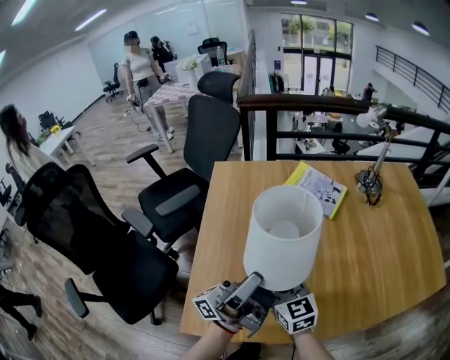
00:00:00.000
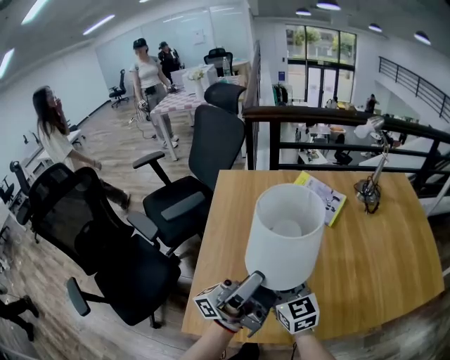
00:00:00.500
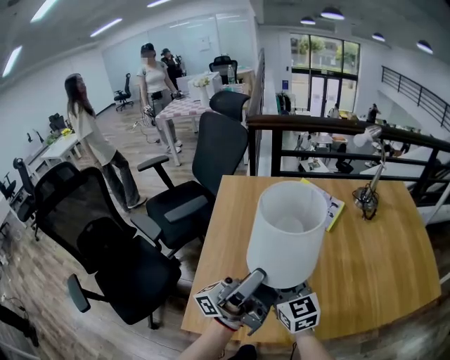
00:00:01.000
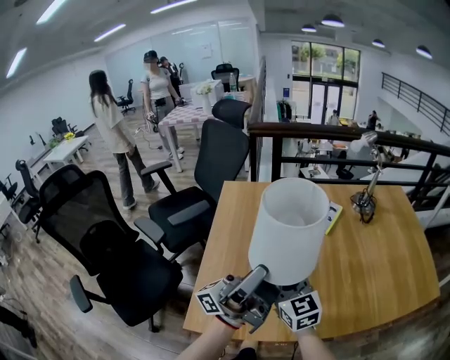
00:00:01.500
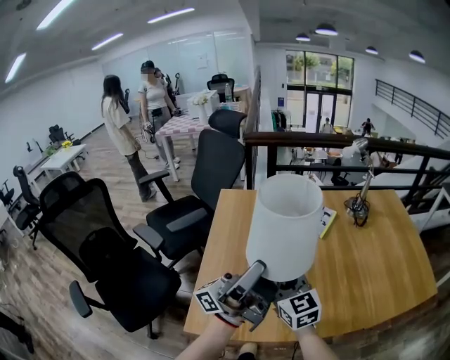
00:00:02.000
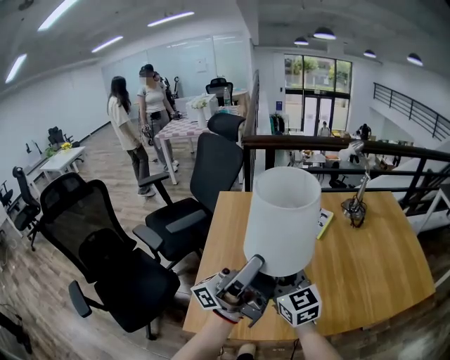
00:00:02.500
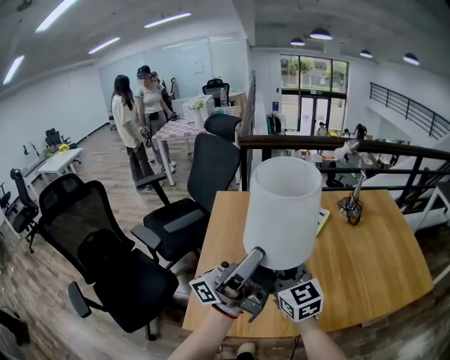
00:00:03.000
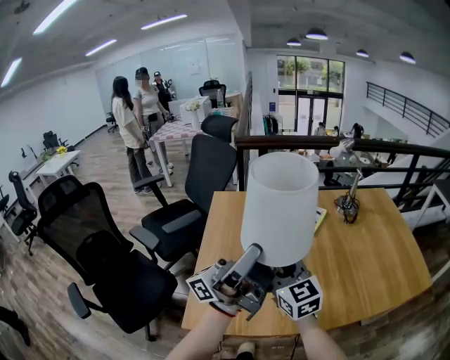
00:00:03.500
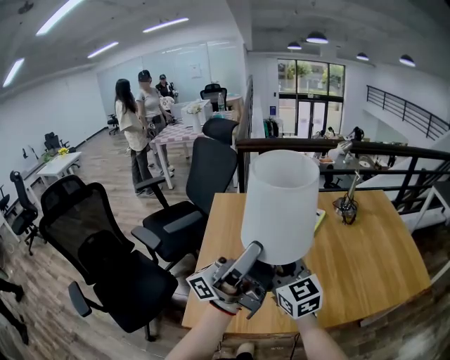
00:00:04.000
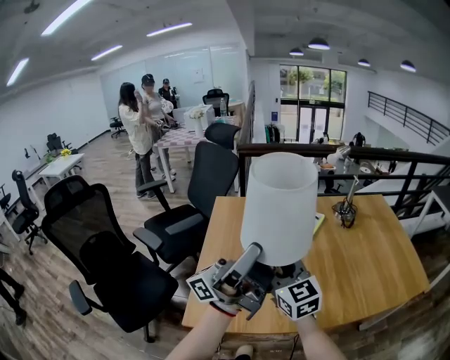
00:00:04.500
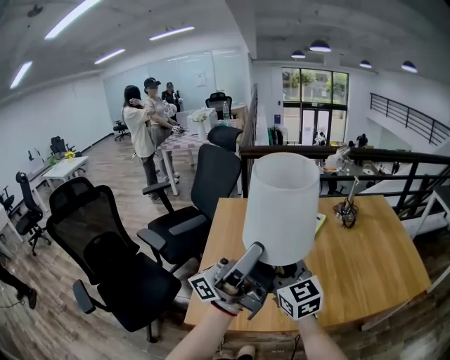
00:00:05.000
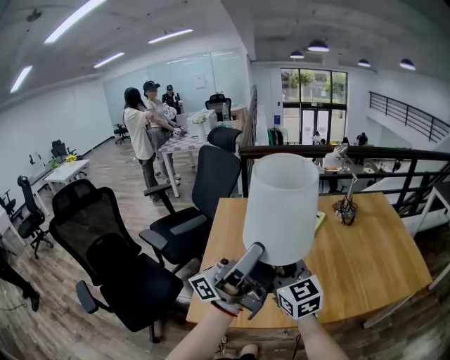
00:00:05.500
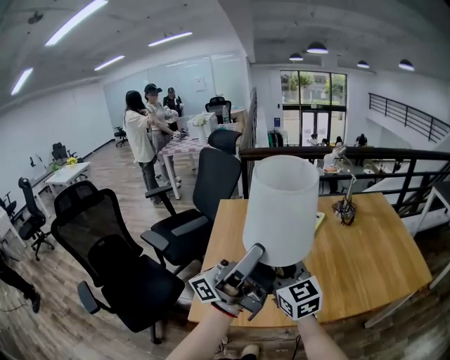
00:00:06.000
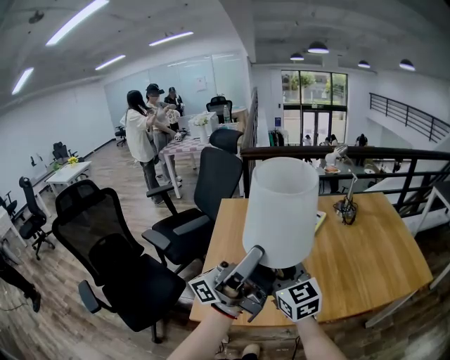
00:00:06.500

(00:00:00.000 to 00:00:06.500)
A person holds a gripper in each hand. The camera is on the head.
00:00:00.000 - 00:00:02.000: The grippers both shift upward by about 10 cm.
00:00:02.000 - 00:00:04.500: The two grippers go approximately 5 cm upward.
00:00:04.500 - 00:00:06.500: The left gripper moves about 5 cm.

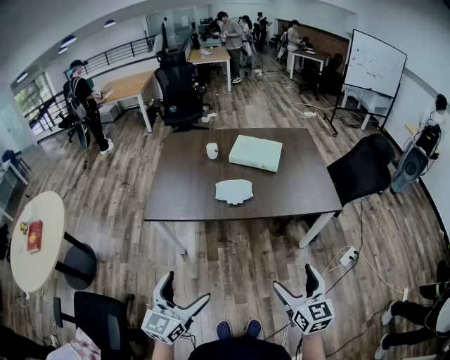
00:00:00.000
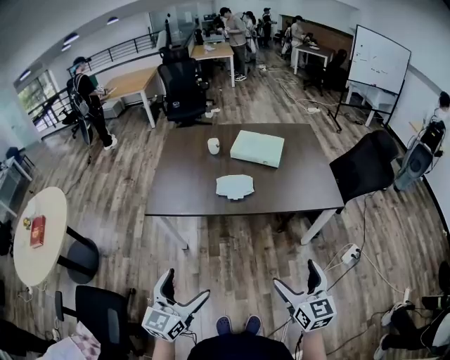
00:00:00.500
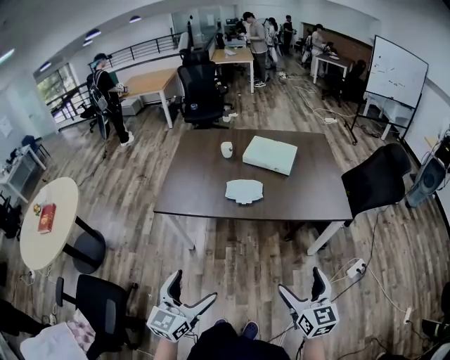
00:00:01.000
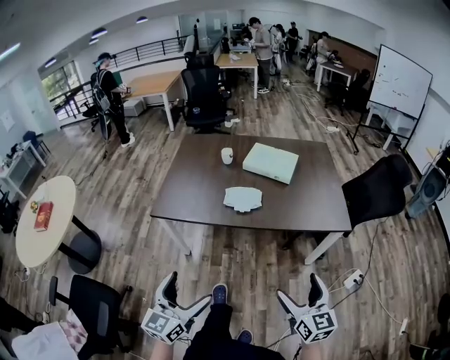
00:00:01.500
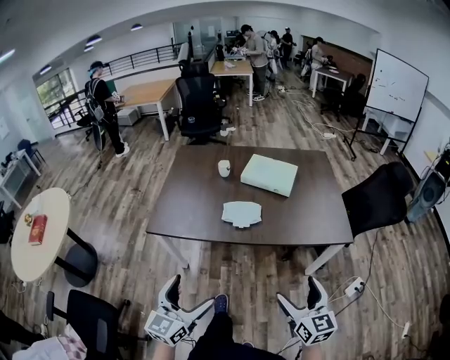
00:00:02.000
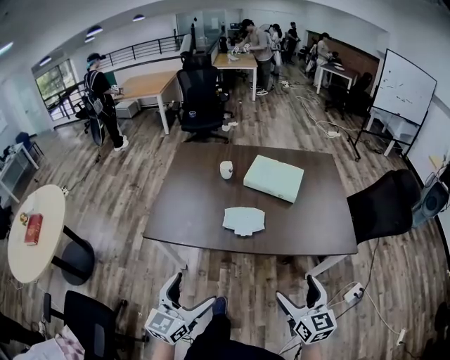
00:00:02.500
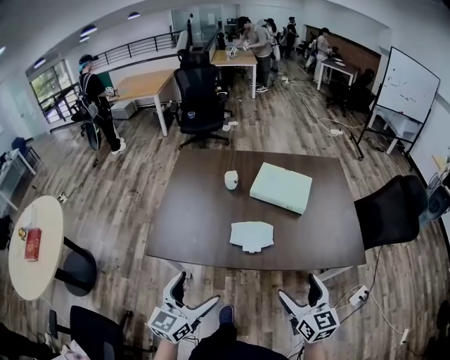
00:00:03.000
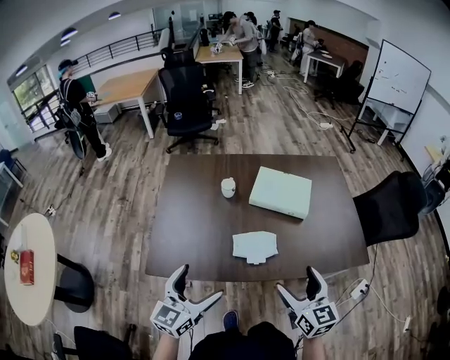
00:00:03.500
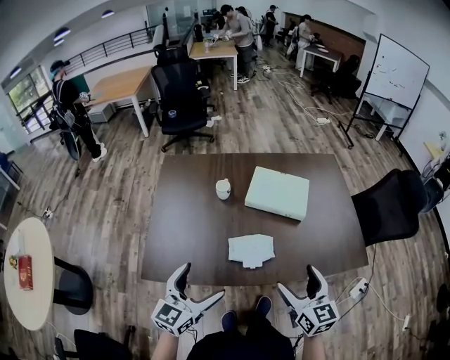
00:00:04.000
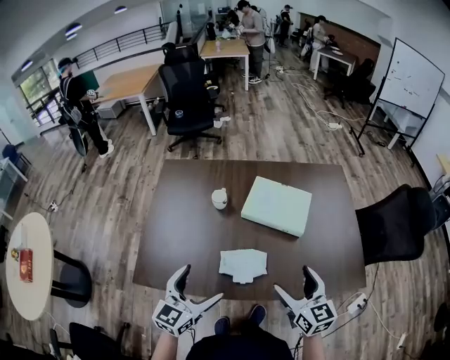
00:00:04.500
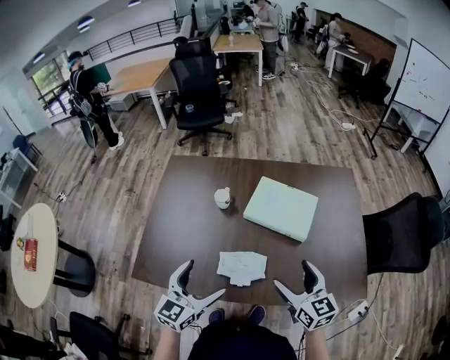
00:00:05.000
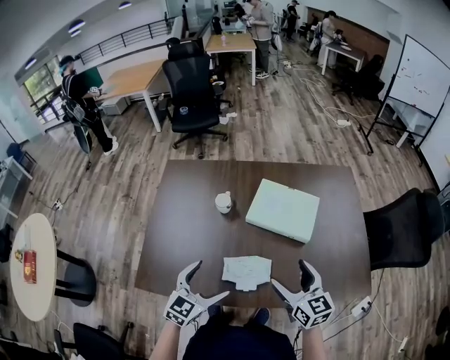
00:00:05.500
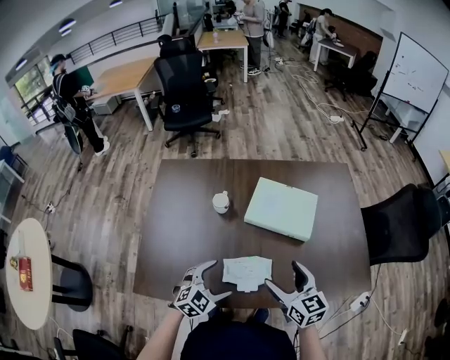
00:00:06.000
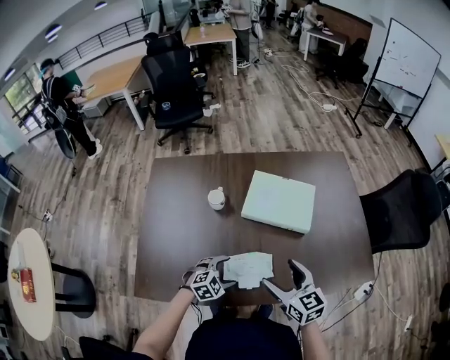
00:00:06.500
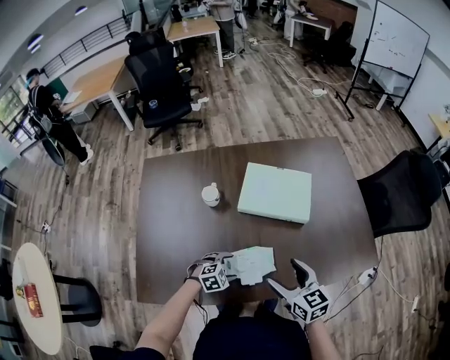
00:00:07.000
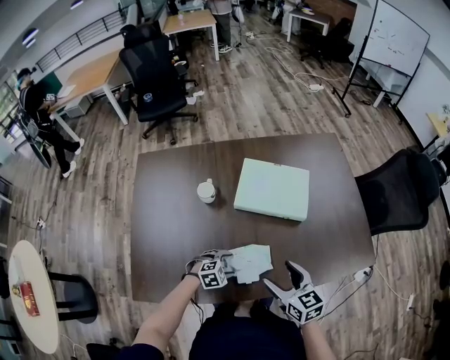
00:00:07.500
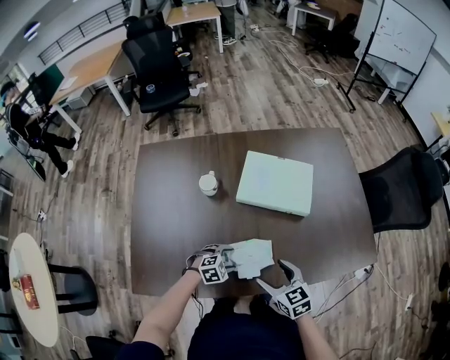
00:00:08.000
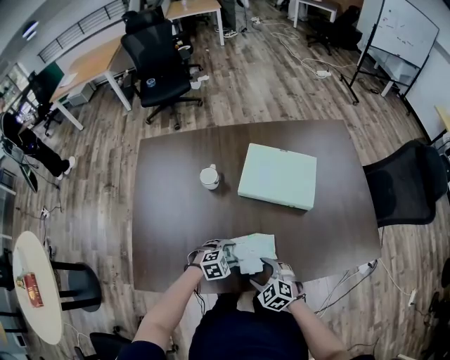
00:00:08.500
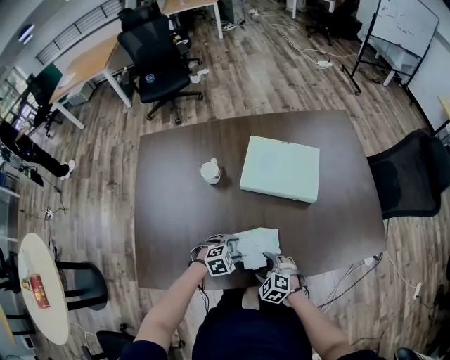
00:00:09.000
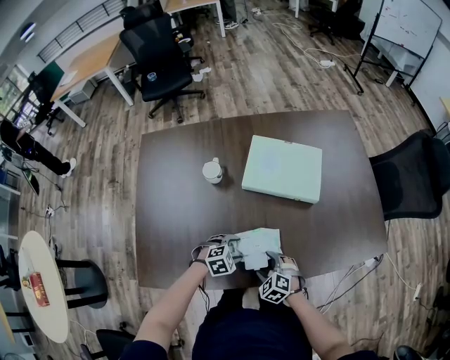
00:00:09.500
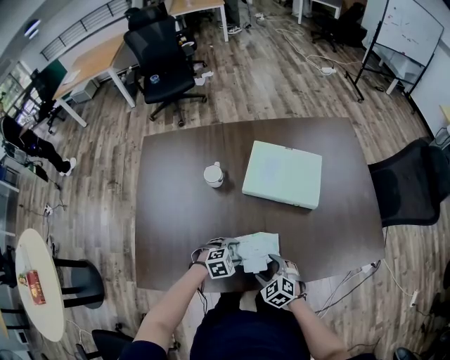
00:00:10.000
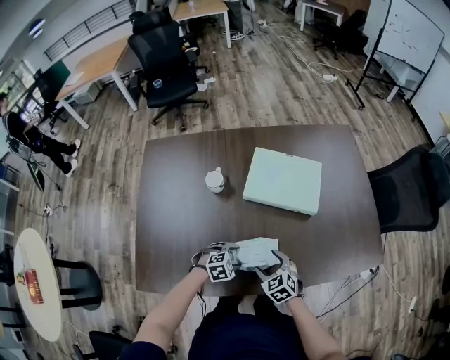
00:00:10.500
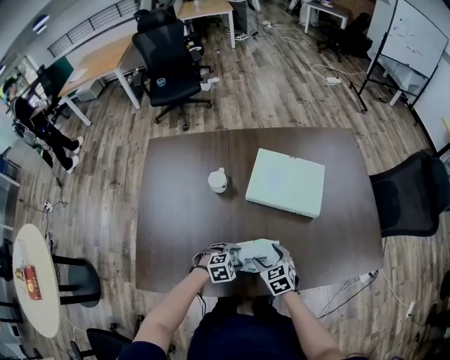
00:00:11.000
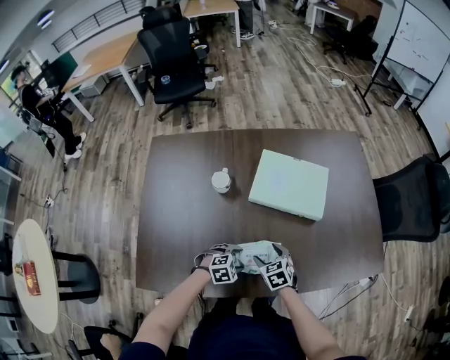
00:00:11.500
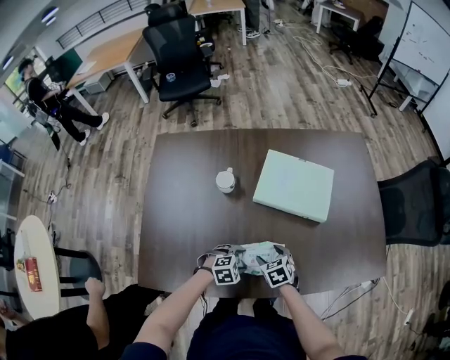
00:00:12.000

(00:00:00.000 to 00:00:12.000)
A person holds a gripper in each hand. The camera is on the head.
00:00:00.000 - 00:00:02.000: The two grippers go about 10 cm forward.
00:00:02.000 - 00:00:04.000: Both grippers travel together forward, roughly 35 cm.
00:00:04.000 - 00:00:06.000: The right gripper shifts roughly 15 cm forward, while the left gripper shifts approximately 25 cm downward, forward and to the right, and turns by about 40 degrees.
00:00:06.000 - 00:00:08.000: The left gripper moves downward, roughly 20 cm, and turns by about 30 degrees. The right gripper shifts approximately 15 cm downward.
00:00:08.000 - 00:00:10.000: The right gripper shifts some 15 cm downward, and swivels roughly 30 degrees.
00:00:10.000 - 00:00:12.000: The right gripper goes roughly 10 cm forward, and rotates about 30 degrees.

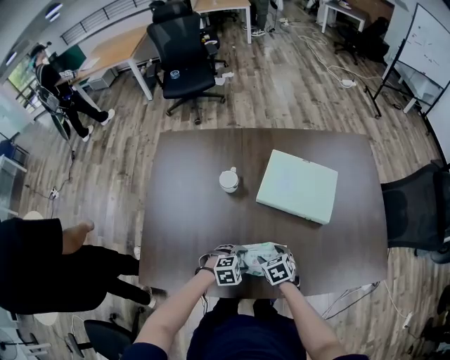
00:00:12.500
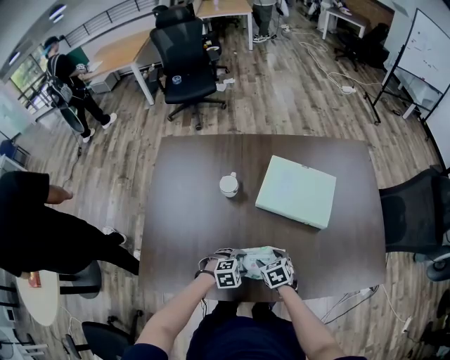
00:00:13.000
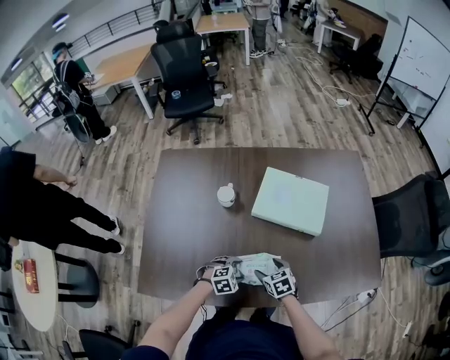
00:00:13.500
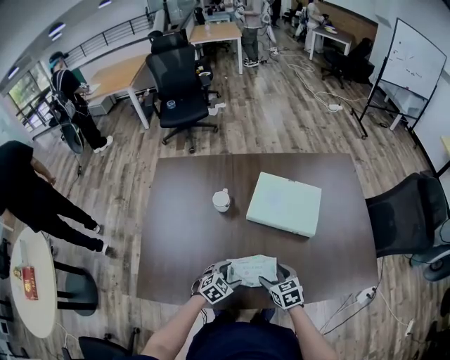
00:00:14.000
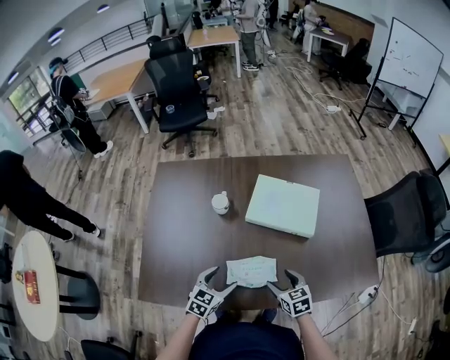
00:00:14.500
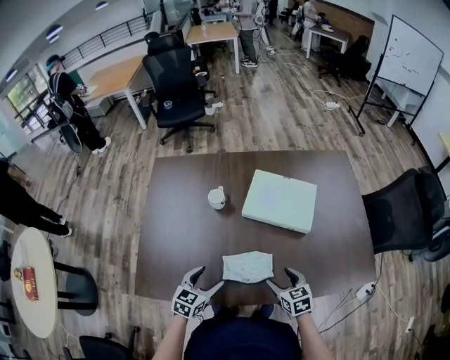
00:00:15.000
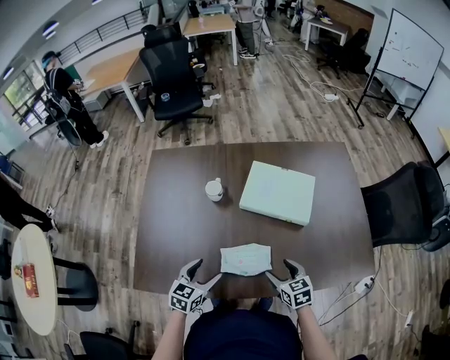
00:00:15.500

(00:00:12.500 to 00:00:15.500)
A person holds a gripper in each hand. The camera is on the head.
00:00:12.500 - 00:00:14.000: The right gripper shifts about 10 cm upward and to the right. Meanwhile the left gripper rotates roughly 30 degrees.
00:00:14.000 - 00:00:15.500: The right gripper moves to the right, about 5 cm; the left gripper heads upward and to the left, covering about 15 cm, and rotates about 30 degrees.

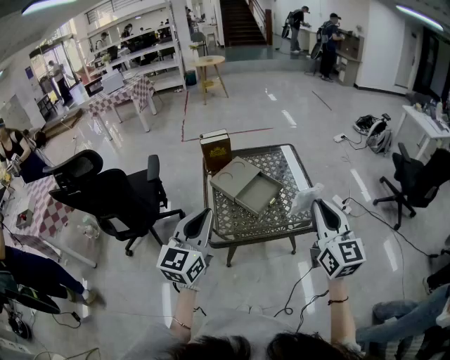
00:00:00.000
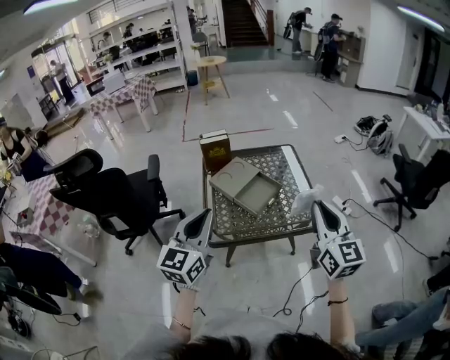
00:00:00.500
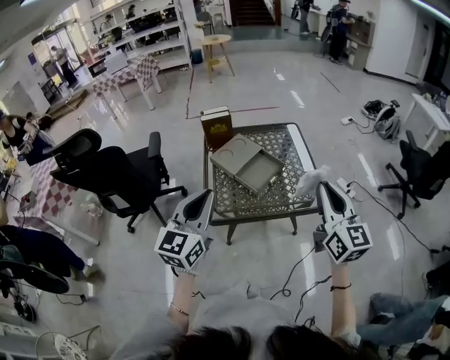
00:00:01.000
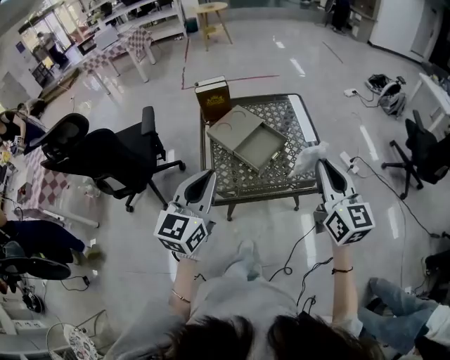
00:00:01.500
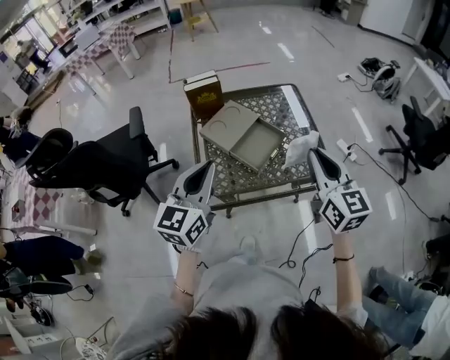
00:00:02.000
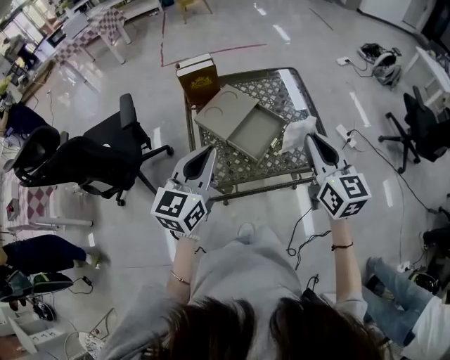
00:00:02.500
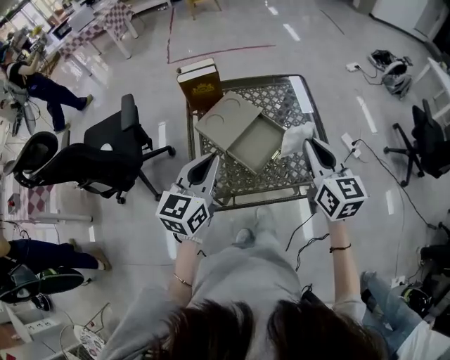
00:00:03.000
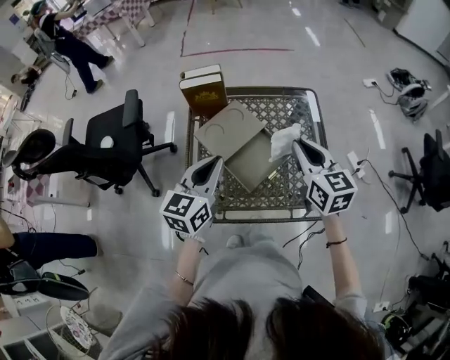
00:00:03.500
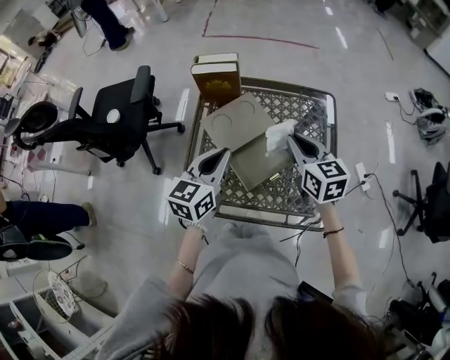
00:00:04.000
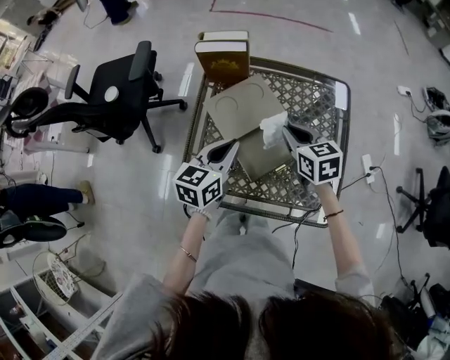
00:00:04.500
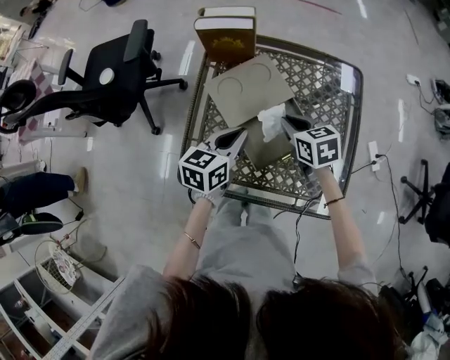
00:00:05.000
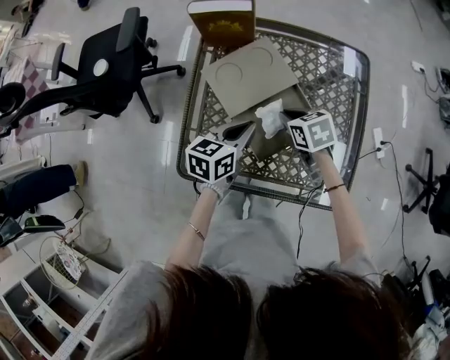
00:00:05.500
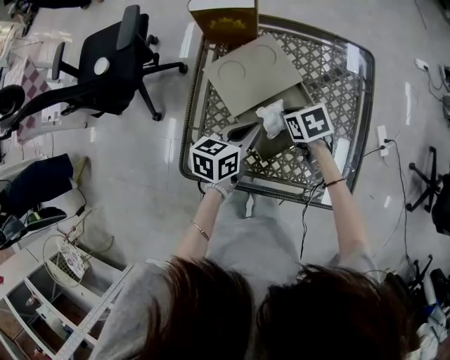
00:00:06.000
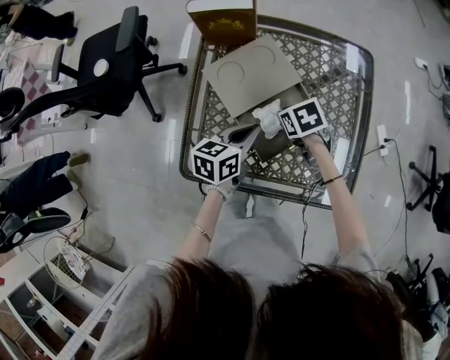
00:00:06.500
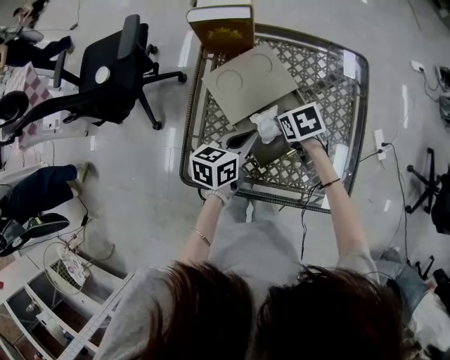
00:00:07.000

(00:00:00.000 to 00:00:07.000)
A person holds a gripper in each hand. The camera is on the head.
00:00:00.000 - 00:00:02.000: Both grippers move forward and downward, about 10 cm.
00:00:02.000 - 00:00:03.500: The right gripper heads forward, covering some 20 cm; the left gripper travels forward and downward by about 15 cm.
00:00:03.500 - 00:00:05.000: The left gripper shifts some 15 cm downward, and swivels about 20 degrees, while the right gripper heads downward and forward, covering about 20 cm, and swivels some 40 degrees.
00:00:05.000 - 00:00:07.000: The left gripper moves approximately 5 cm. Meanwhile the right gripper travels downward by about 10 cm, rotates some 20 degrees, and opens up.
